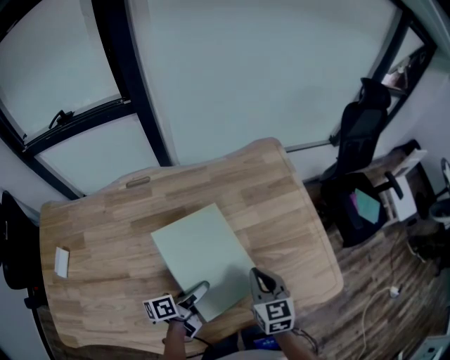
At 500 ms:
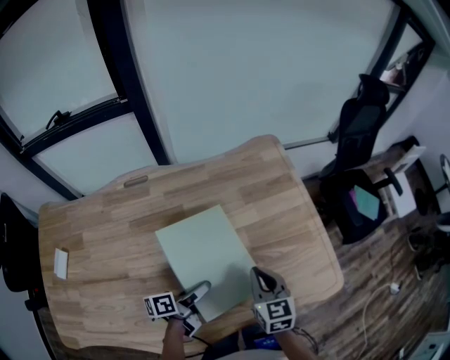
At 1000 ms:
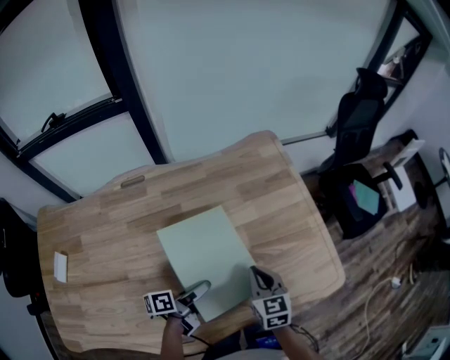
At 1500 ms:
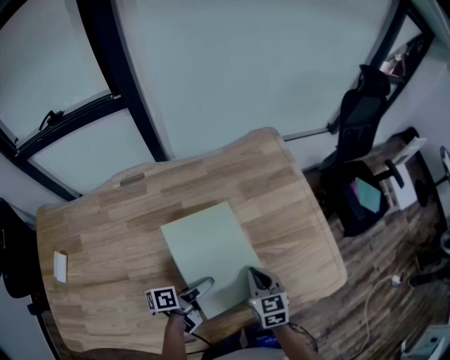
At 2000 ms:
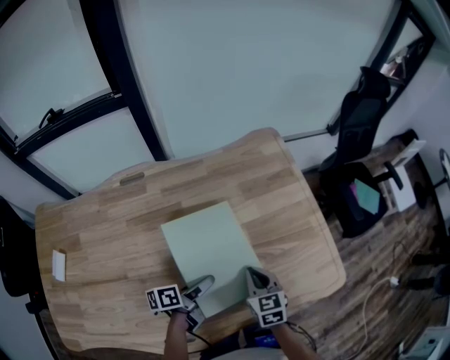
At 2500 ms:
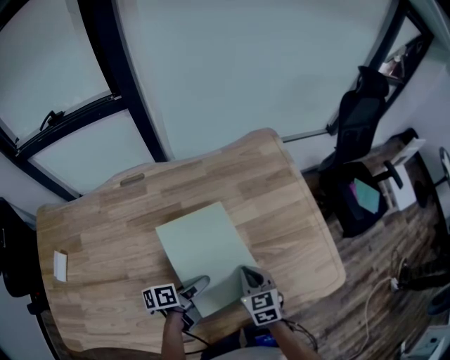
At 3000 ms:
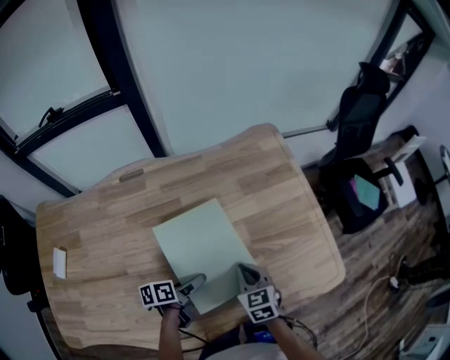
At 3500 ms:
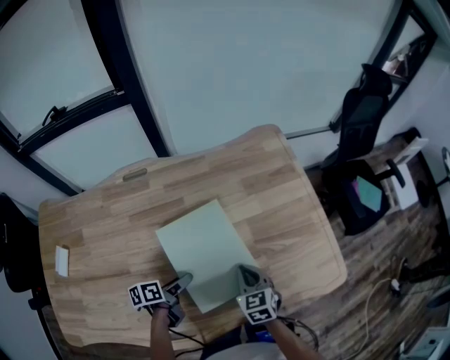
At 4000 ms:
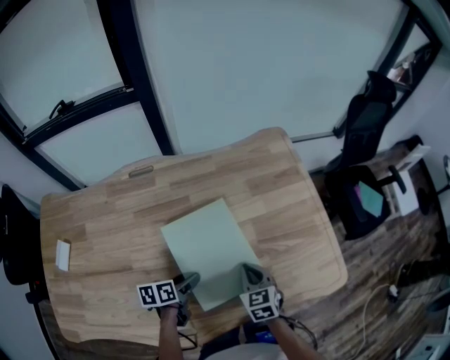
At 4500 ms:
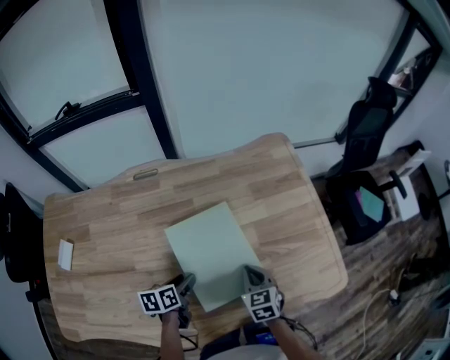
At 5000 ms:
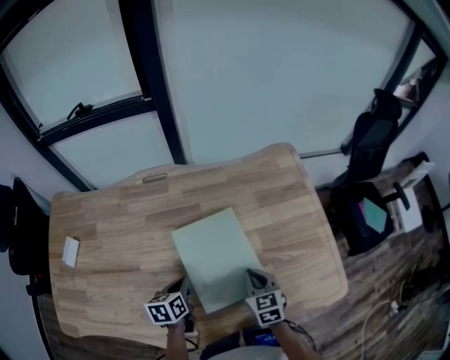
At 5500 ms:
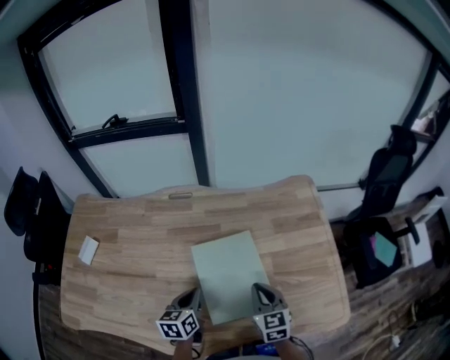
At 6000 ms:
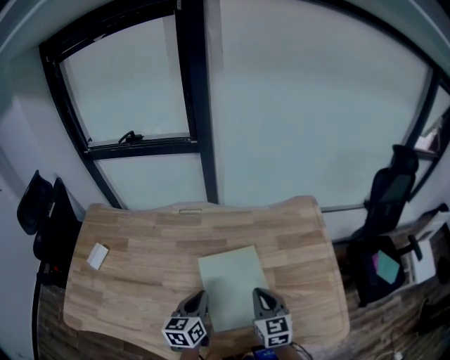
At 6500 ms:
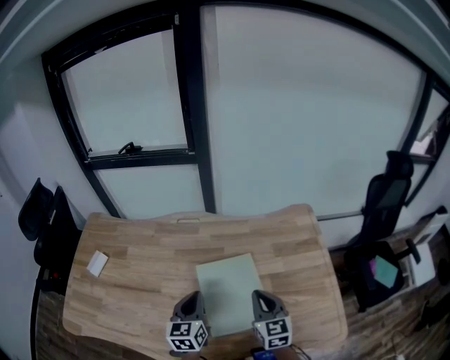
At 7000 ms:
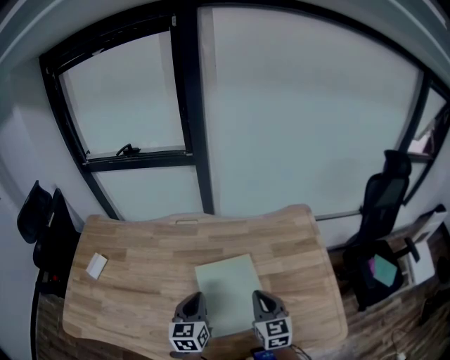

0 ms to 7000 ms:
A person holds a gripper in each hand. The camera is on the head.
0 ms to 2000 ms: The right gripper goes approximately 5 cm downward.
2000 ms to 3500 ms: The left gripper goes roughly 10 cm to the left.
3500 ms to 5000 ms: The left gripper rotates approximately 30 degrees, and closes its fingers.
5000 ms to 7000 ms: The grippers both shift upward by some 15 cm. The left gripper swivels roughly 40 degrees.

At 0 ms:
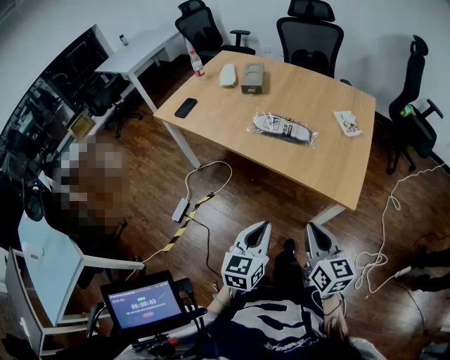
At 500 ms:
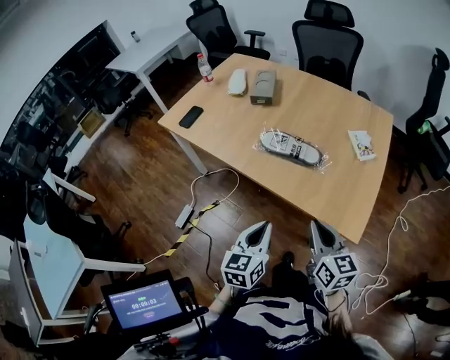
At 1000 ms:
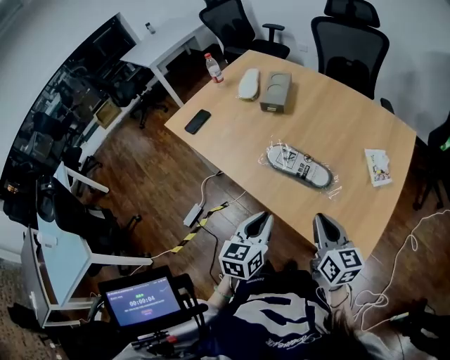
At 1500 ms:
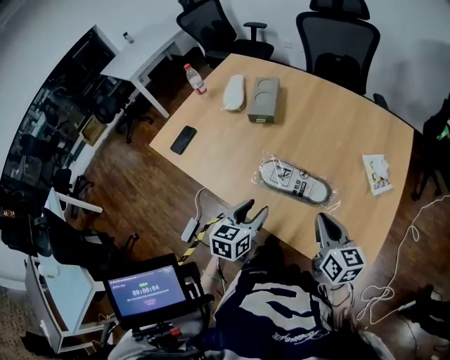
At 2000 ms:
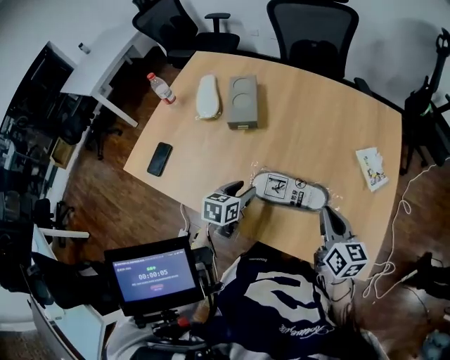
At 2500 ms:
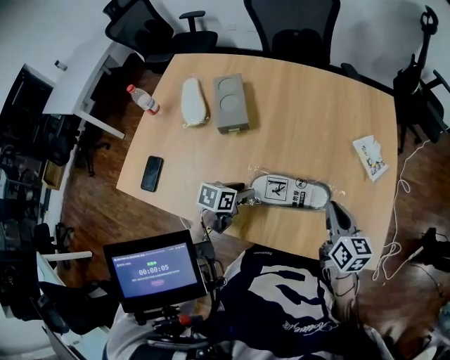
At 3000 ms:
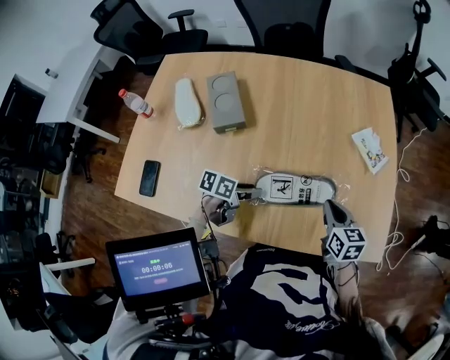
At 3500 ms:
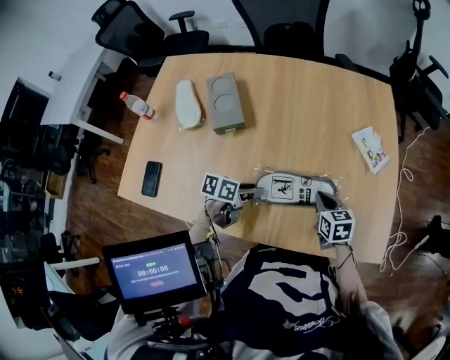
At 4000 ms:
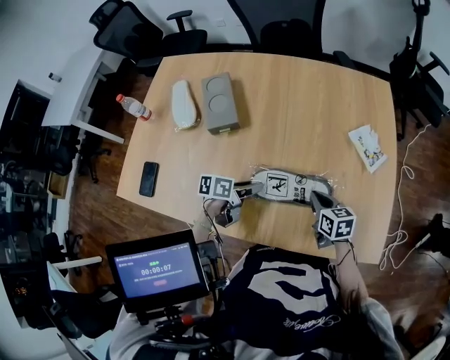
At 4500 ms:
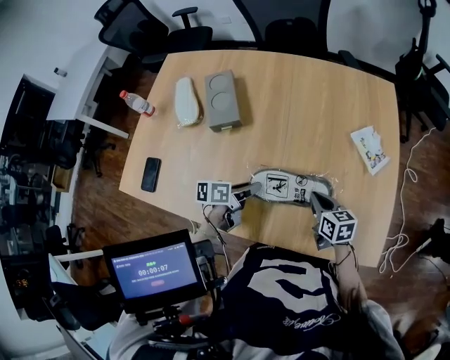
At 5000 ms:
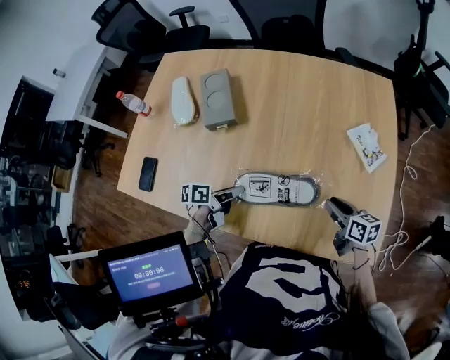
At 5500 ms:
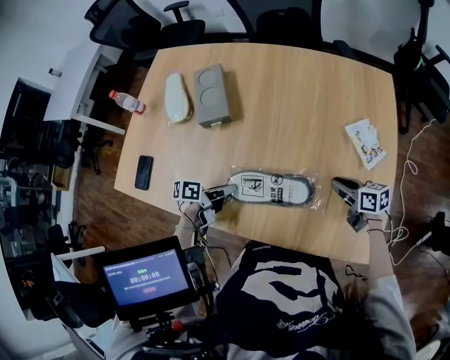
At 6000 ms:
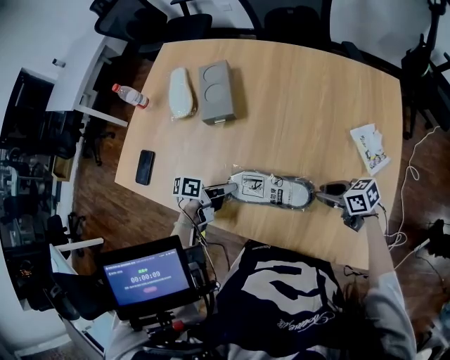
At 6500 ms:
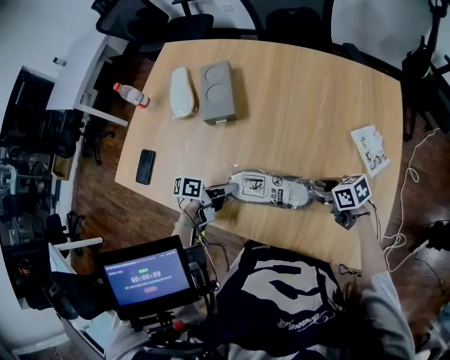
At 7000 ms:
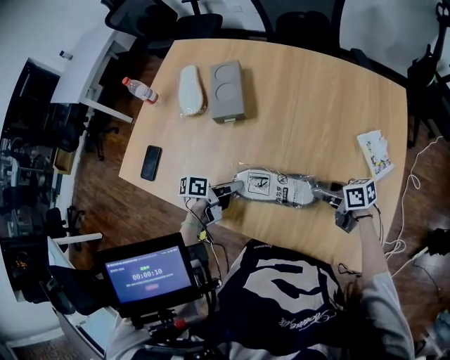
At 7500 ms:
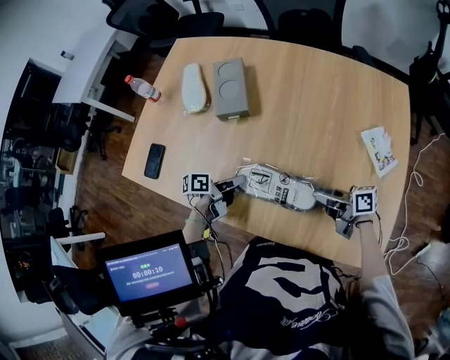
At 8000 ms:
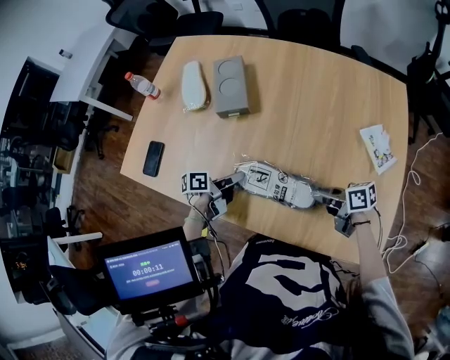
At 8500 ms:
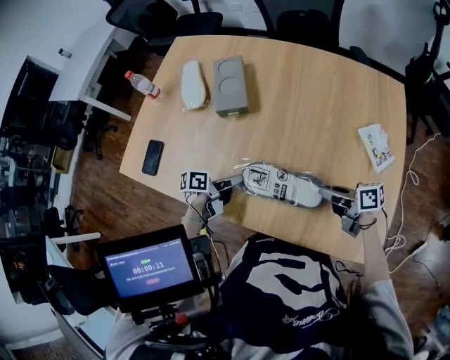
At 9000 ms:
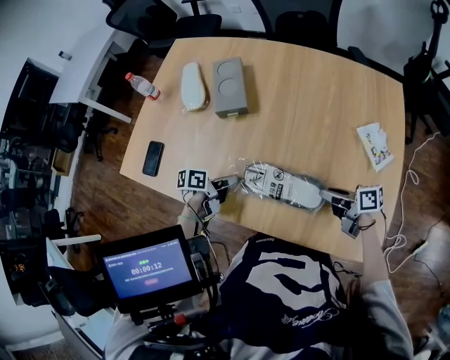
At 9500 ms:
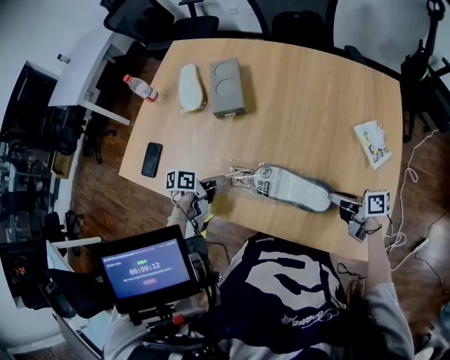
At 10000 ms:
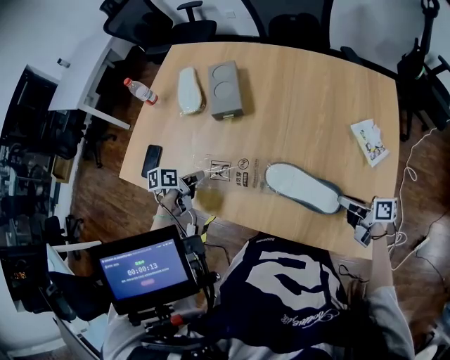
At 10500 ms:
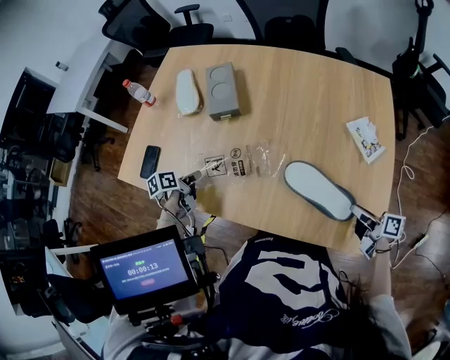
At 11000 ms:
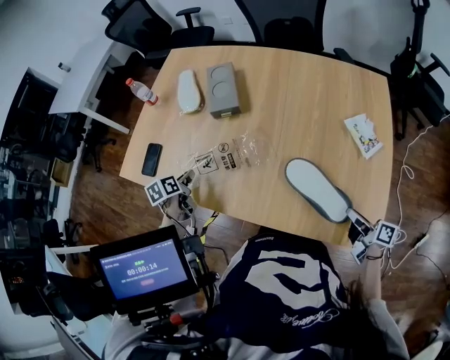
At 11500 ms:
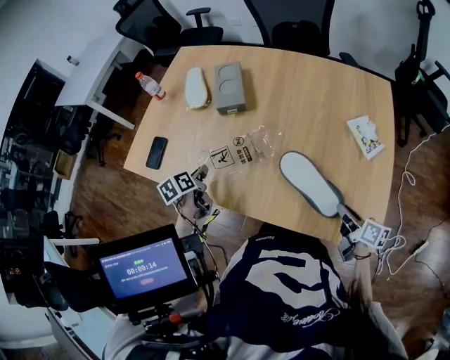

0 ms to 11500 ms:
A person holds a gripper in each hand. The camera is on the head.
0 ms to 2000 ms: The two grippers travel together, forward, about 50 cm. The left gripper swivels some 30 degrees, and opens its fingers.
2000 ms to 4000 ms: The left gripper ends up roughly 10 cm from where it was, and turns by about 40 degrees. The right gripper shifts some 15 cm downward.
4000 ms to 6000 ms: The left gripper ends up about 5 cm from where it was, and closes its fingers; the right gripper swivels some 40 degrees, and opens up.
6000 ms to 7500 ms: The right gripper ends up some 5 cm from where it was, and turns by about 30 degrees.
7500 ms to 9500 ms: The right gripper moves about 5 cm. The left gripper shifts by roughly 5 cm.
9500 ms to 11500 ms: The left gripper heads to the left and upward, covering roughly 10 cm, and swivels approximately 40 degrees, while the right gripper goes about 10 cm backward, and changes its angle by approximately 30 degrees.

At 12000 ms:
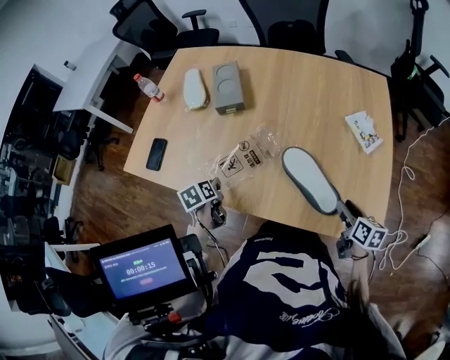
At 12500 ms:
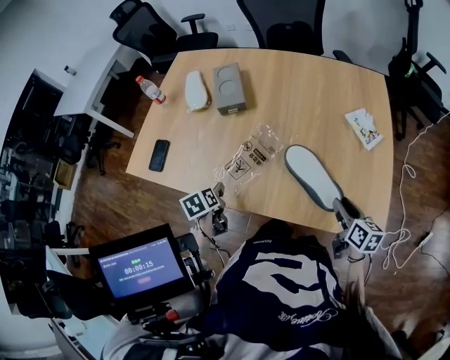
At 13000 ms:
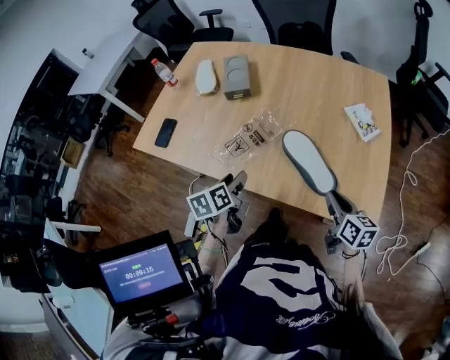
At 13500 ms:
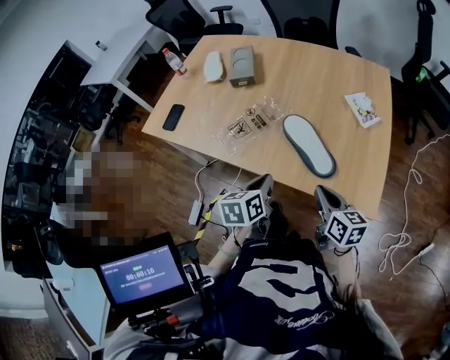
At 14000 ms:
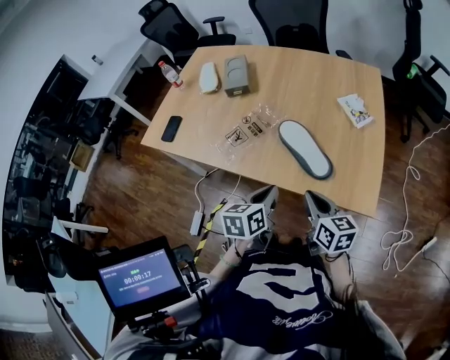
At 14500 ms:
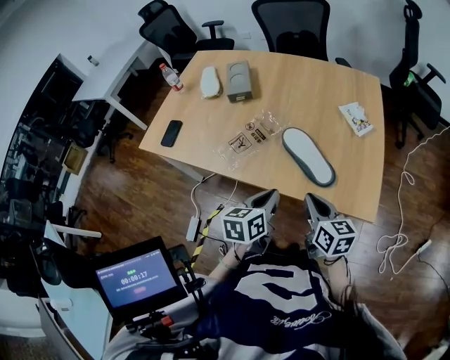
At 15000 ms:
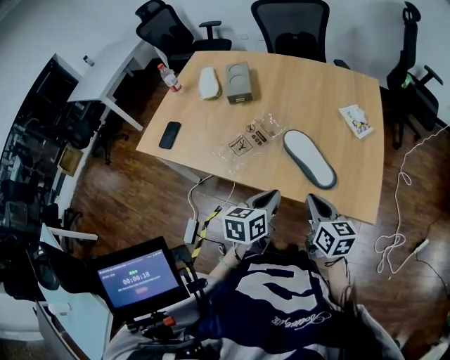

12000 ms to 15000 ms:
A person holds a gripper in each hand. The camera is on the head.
12000 ms to 13500 ms: The left gripper heads to the right, backward and upward, covering about 30 cm, rotates roughly 30 degrees, and opens, then closes again. Meanwhile the right gripper shifts some 15 cm to the left, backward and upward, turns by roughly 20 degrees, and closes.
13500 ms to 15000 ms: The right gripper heads to the left, covering about 5 cm.

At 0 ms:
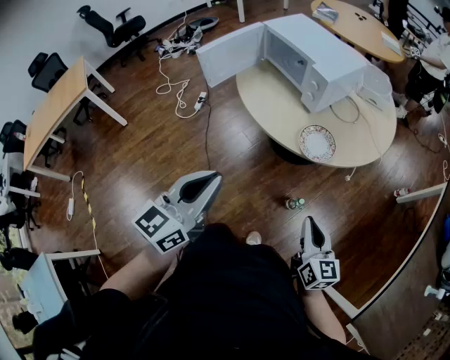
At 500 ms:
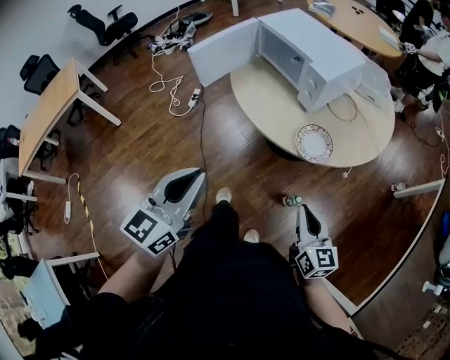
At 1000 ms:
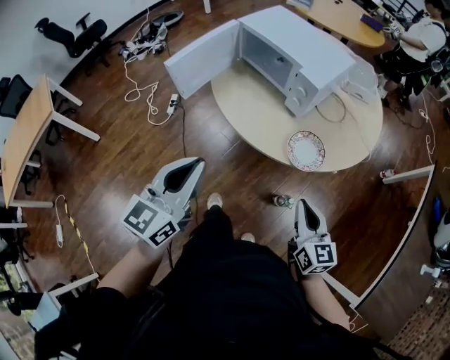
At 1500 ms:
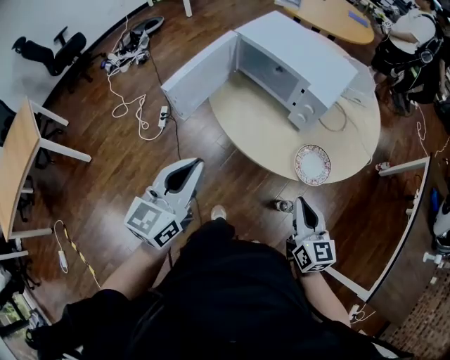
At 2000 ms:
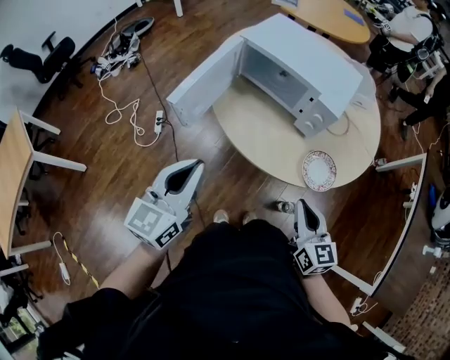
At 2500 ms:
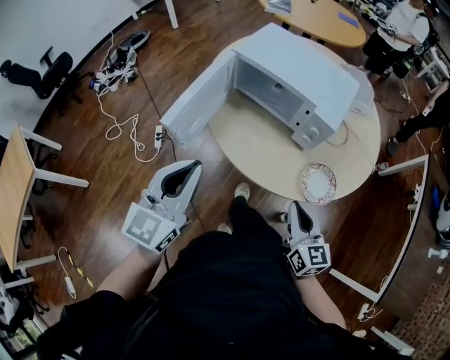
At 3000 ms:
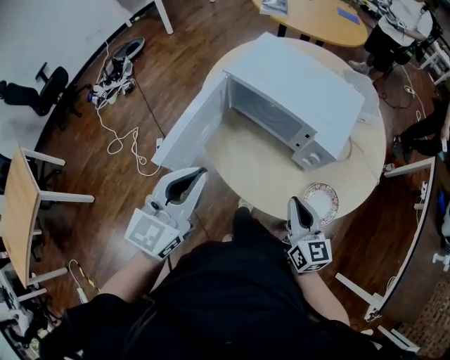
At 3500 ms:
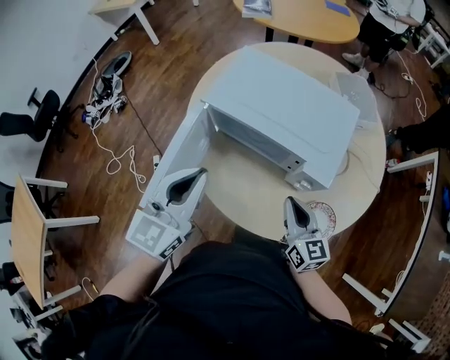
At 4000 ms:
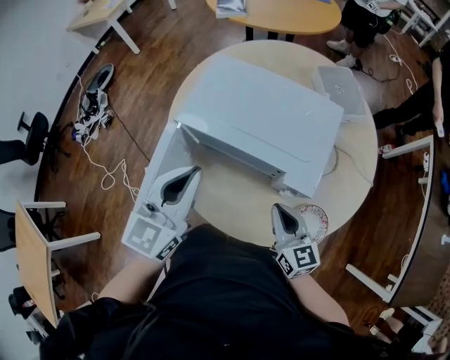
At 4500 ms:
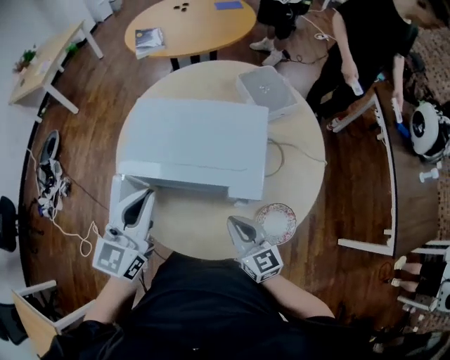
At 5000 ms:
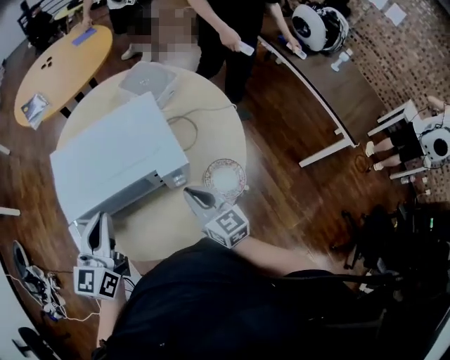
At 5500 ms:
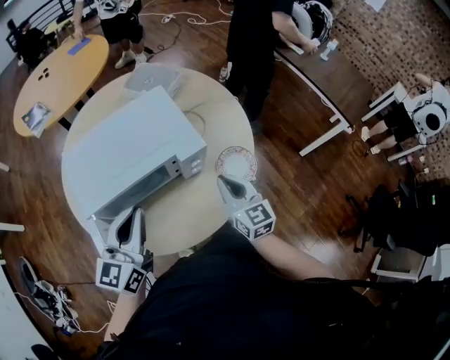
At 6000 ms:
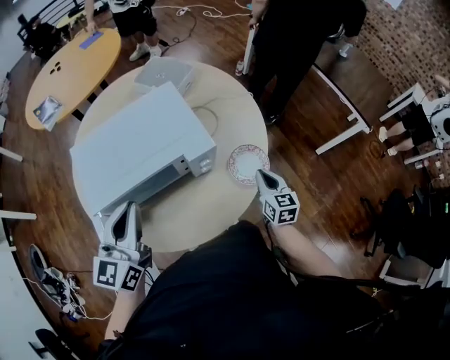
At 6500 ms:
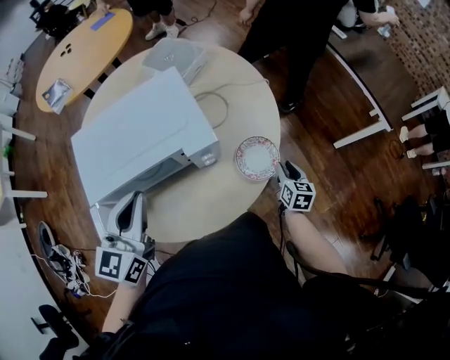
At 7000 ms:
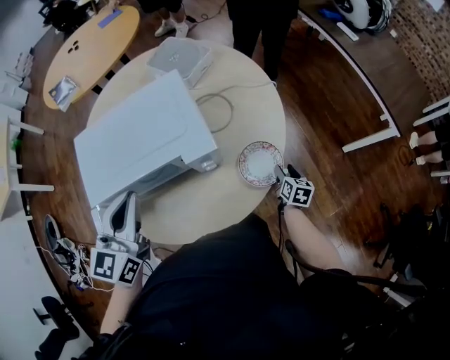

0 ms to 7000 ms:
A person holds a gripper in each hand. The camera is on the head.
0 ms to 2000 ms: Both grippers move forward and to the left, roughly 25 cm.
2000 ms to 3500 ms: Both grippers travel together forward, about 20 cm.
3500 ms to 5000 ms: The right gripper rotates roughly 30 degrees. The left gripper moves approximately 10 cm, and rotates some 30 degrees.
5000 ms to 7000 ms: The right gripper shifts approximately 35 cm to the right and downward, tips its fingers downward by approximately 30 degrees, and opens up.
